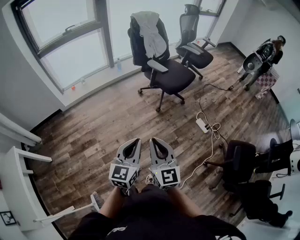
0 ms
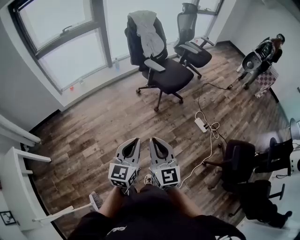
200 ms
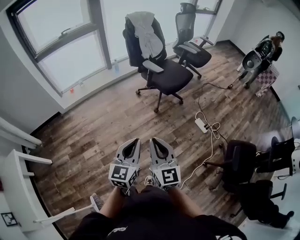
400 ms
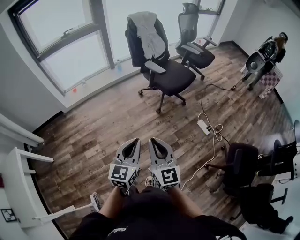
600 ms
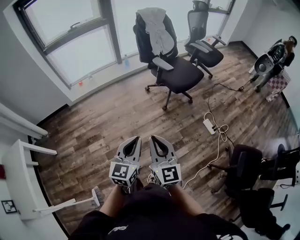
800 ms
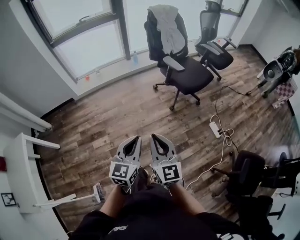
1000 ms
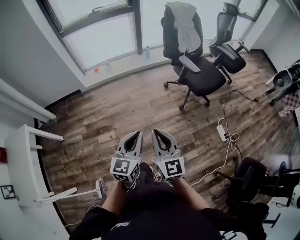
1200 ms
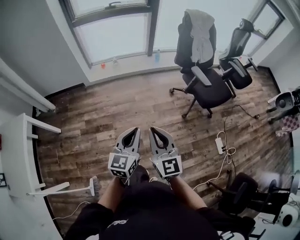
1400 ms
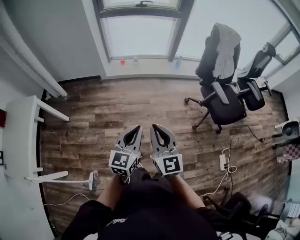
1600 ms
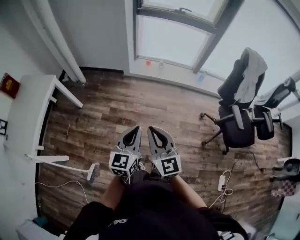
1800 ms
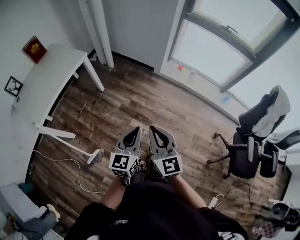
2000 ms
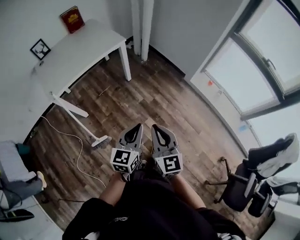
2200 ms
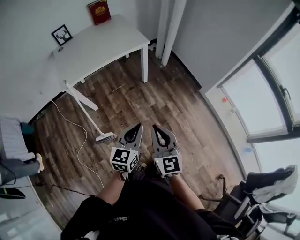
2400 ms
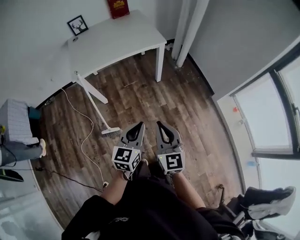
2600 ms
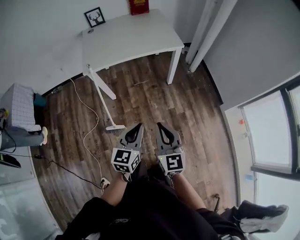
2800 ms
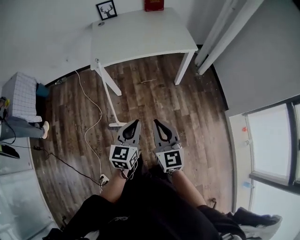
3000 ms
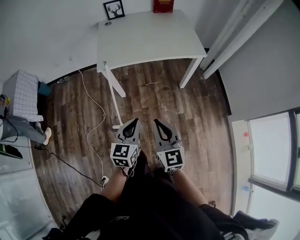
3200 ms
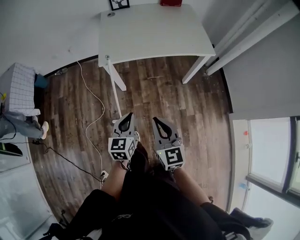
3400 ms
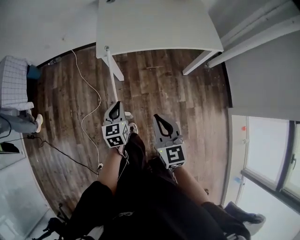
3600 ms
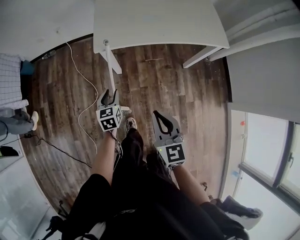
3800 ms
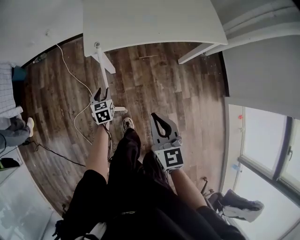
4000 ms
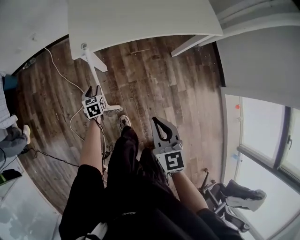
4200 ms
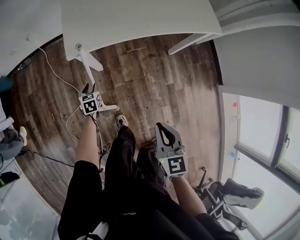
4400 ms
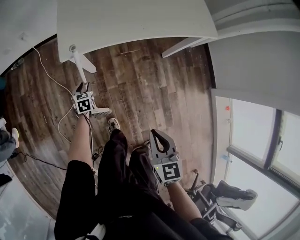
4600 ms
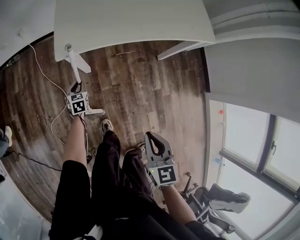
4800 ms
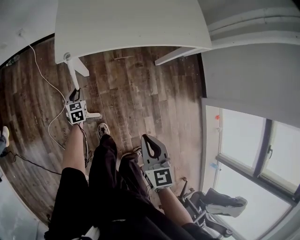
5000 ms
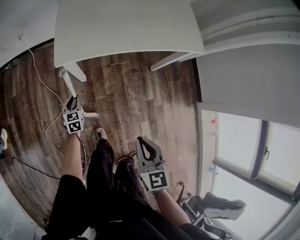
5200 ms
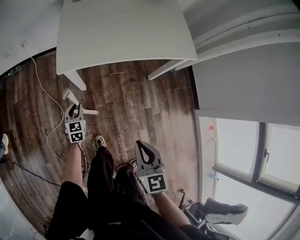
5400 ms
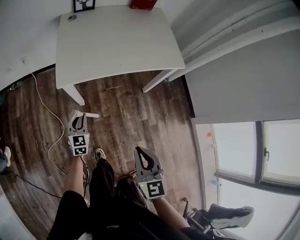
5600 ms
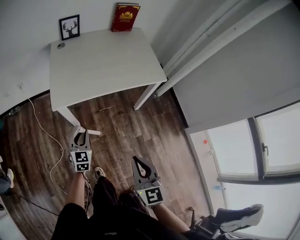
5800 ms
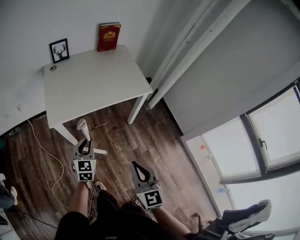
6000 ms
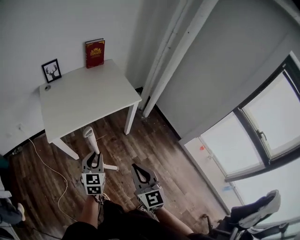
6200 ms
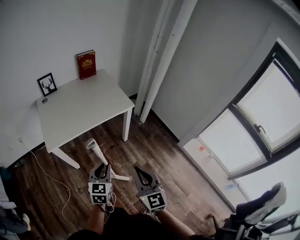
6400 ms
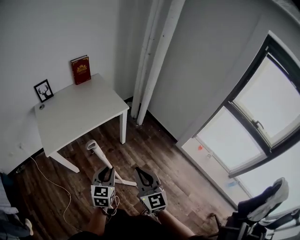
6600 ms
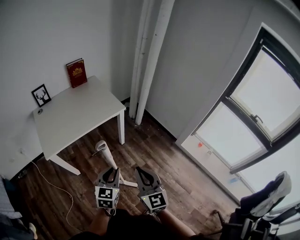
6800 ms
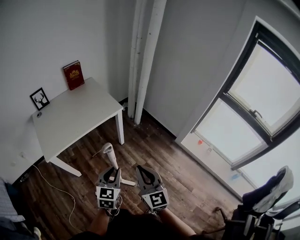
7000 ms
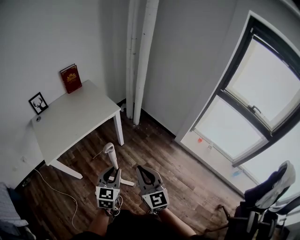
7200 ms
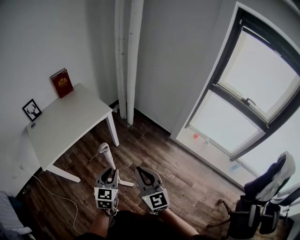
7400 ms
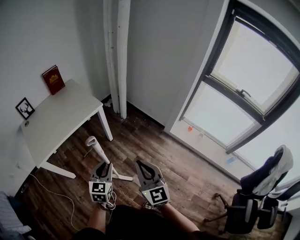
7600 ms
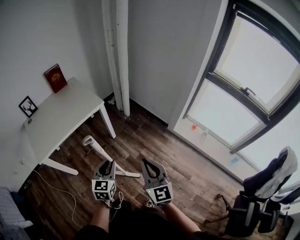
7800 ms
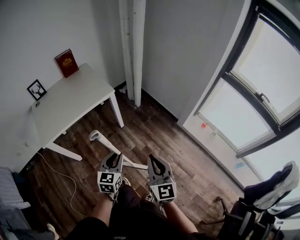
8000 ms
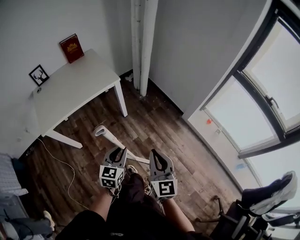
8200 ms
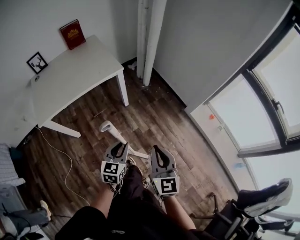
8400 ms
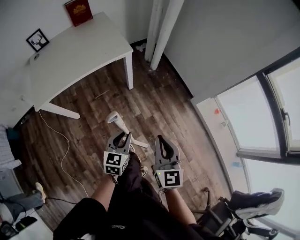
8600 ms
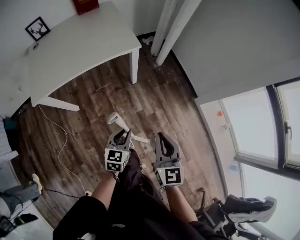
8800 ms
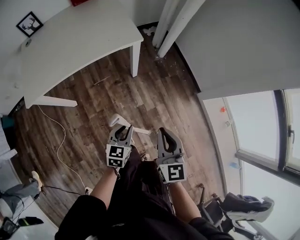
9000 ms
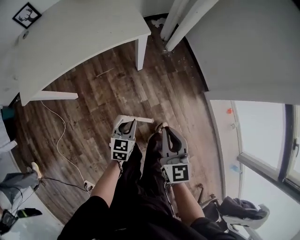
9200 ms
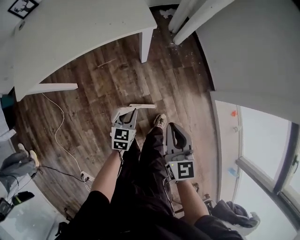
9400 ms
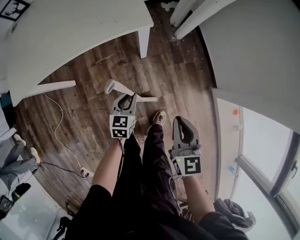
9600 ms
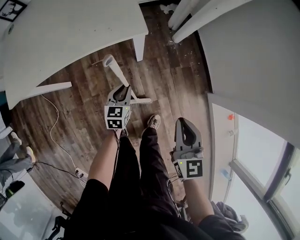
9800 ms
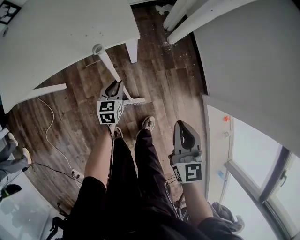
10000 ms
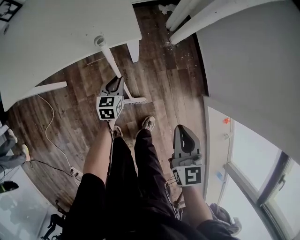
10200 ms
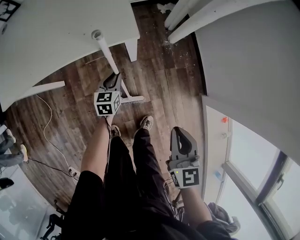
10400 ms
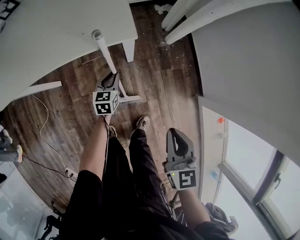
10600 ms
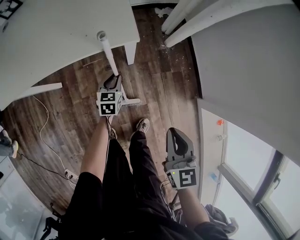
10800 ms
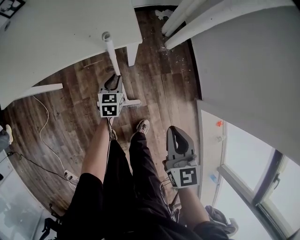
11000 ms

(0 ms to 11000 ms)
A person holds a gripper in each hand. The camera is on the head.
0 ms - 1600 ms: The left gripper ends up some 30 cm from where it was, and turns by some 30 degrees. Meanwhile the right gripper ends up some 30 cm from where it was, and rotates some 30 degrees.
1600 ms - 3200 ms: The pair of grippers is taken approximately 60 cm. The right gripper changes its angle by about 80 degrees, while the left gripper changes its angle by roughly 90 degrees.
3200 ms - 4800 ms: The left gripper travels downward, forward and to the left by approximately 50 cm, and changes its angle by approximately 30 degrees. Meanwhile the right gripper heads downward and forward, covering some 15 cm, and swivels approximately 30 degrees.
4800 ms - 6200 ms: The right gripper is displaced upward and to the right by about 25 cm, and changes its angle by some 30 degrees. Meanwhile the left gripper moves upward and to the right, roughly 50 cm, and rotates roughly 40 degrees.
6200 ms - 7800 ms: The two grippers go some 30 cm to the right.
7800 ms - 9400 ms: The right gripper heads forward and downward, covering about 40 cm, and changes its angle by about 30 degrees, while the left gripper is displaced downward and forward by roughly 40 cm, and changes its angle by some 30 degrees.
9400 ms - 11000 ms: The right gripper is displaced forward and to the right by some 10 cm. The left gripper goes roughly 20 cm forward.

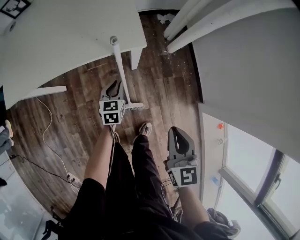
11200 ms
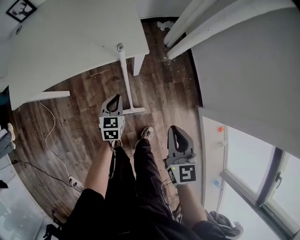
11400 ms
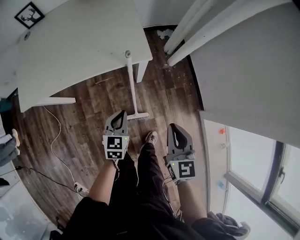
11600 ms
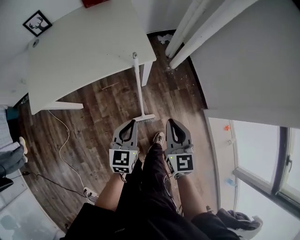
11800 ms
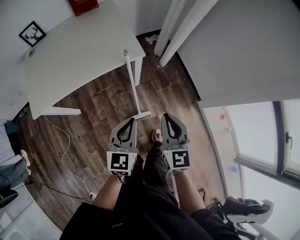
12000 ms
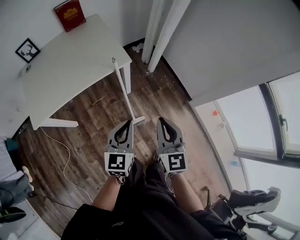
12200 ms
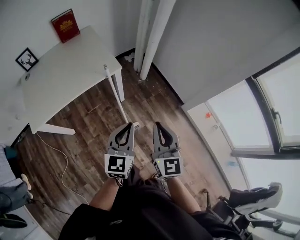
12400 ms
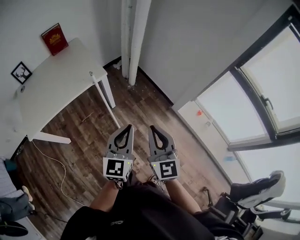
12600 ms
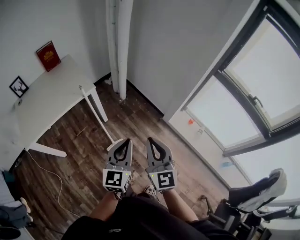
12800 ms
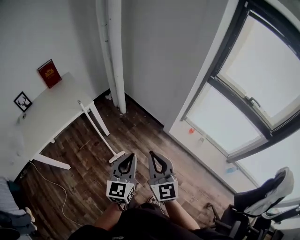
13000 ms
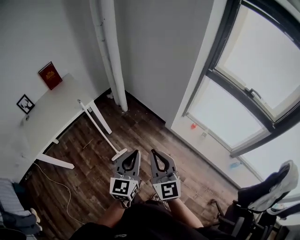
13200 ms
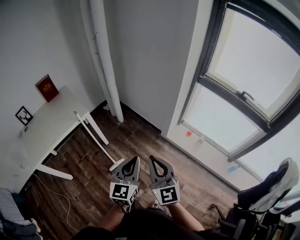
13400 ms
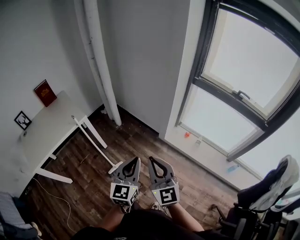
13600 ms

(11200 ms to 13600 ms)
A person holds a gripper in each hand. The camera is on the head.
11200 ms - 12400 ms: The right gripper moves upward and backward, roughly 30 cm, and turns by some 30 degrees, while the left gripper goes about 50 cm upward and backward, and turns by roughly 40 degrees.
12400 ms - 13600 ms: The right gripper moves to the right and backward, about 30 cm. Meanwhile the left gripper heads to the right, covering some 30 cm.

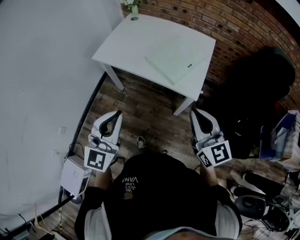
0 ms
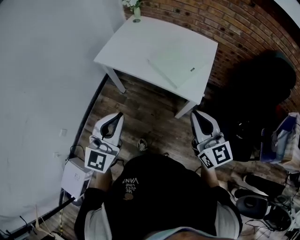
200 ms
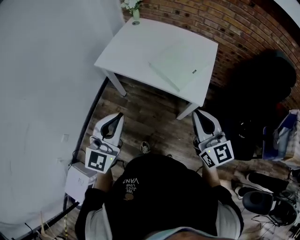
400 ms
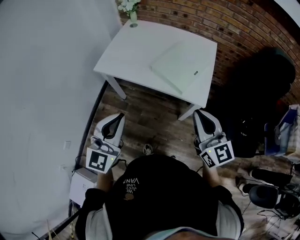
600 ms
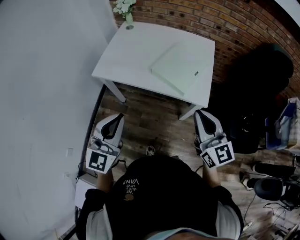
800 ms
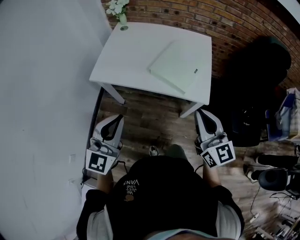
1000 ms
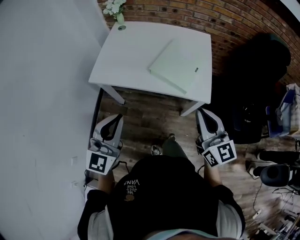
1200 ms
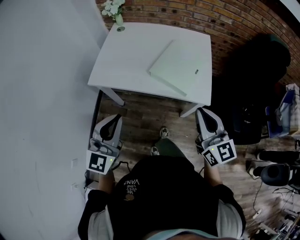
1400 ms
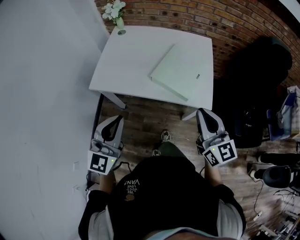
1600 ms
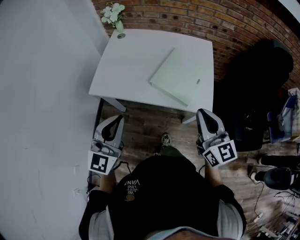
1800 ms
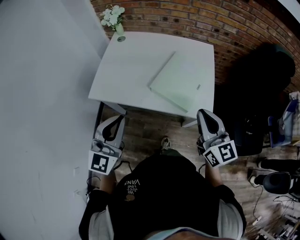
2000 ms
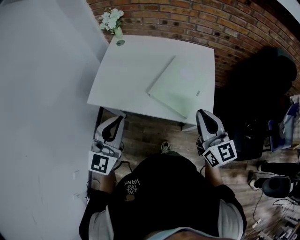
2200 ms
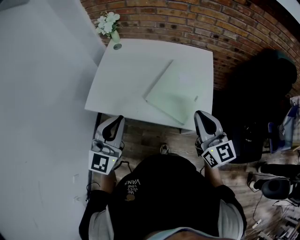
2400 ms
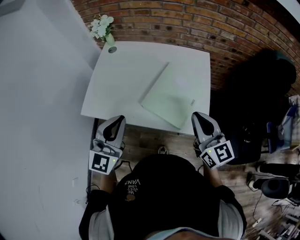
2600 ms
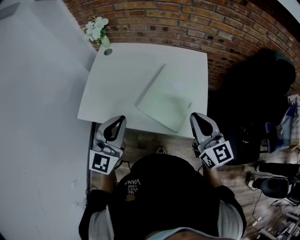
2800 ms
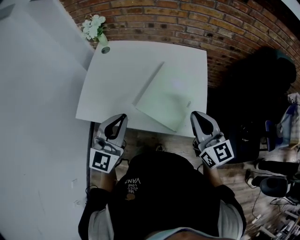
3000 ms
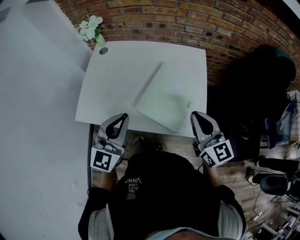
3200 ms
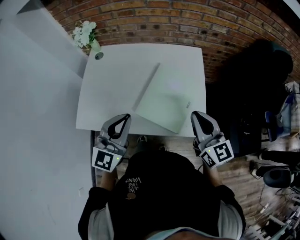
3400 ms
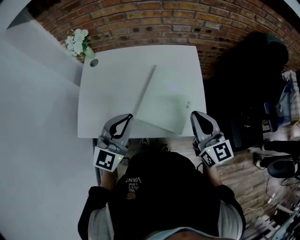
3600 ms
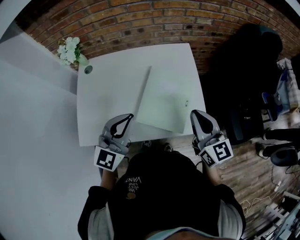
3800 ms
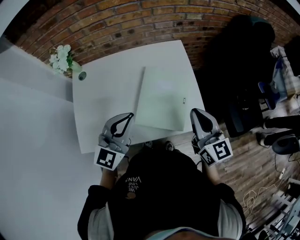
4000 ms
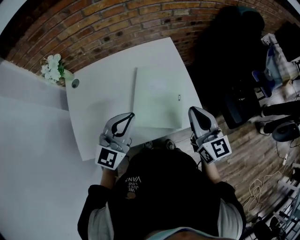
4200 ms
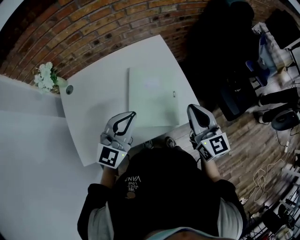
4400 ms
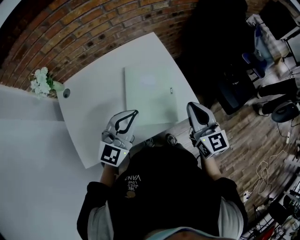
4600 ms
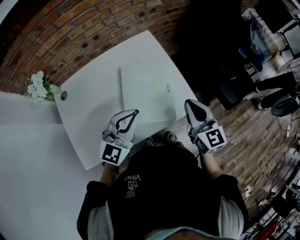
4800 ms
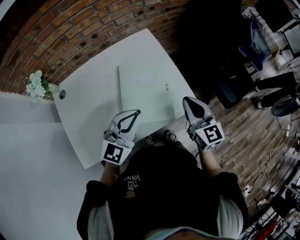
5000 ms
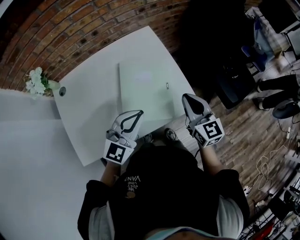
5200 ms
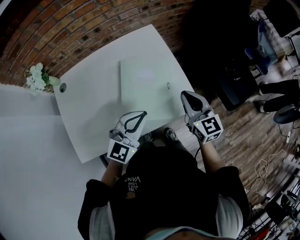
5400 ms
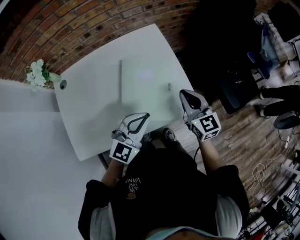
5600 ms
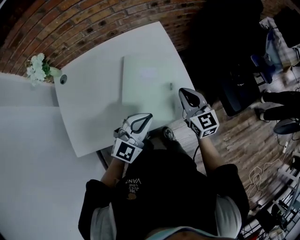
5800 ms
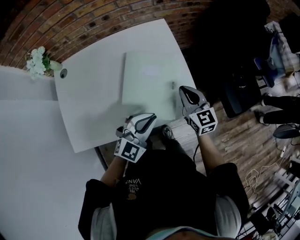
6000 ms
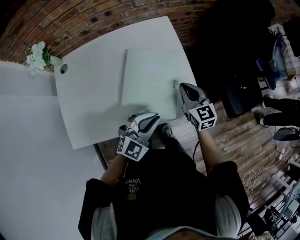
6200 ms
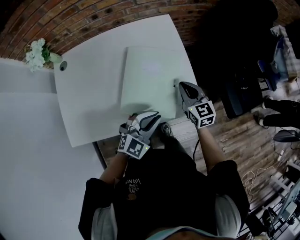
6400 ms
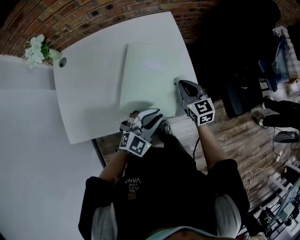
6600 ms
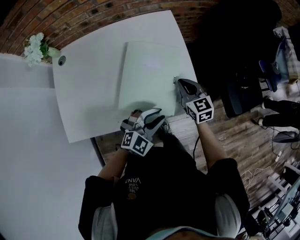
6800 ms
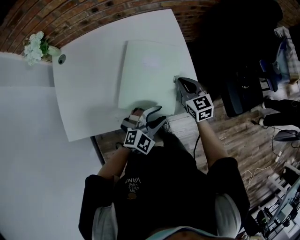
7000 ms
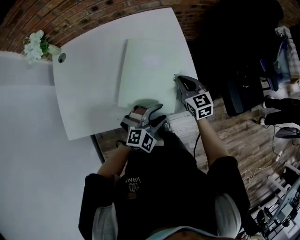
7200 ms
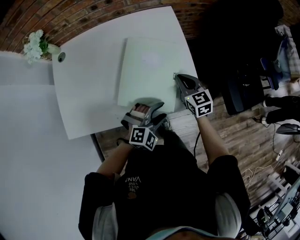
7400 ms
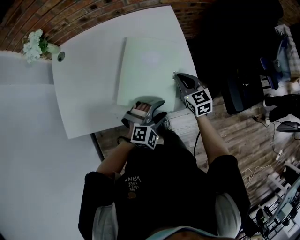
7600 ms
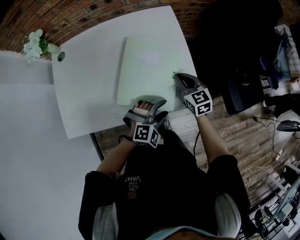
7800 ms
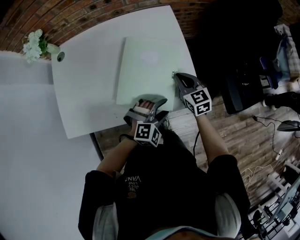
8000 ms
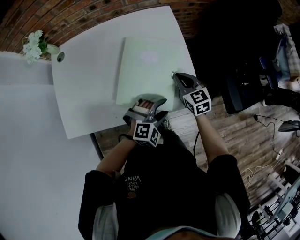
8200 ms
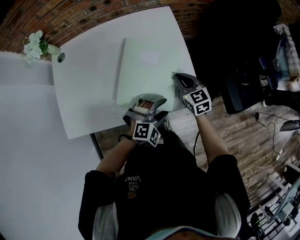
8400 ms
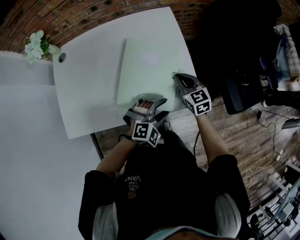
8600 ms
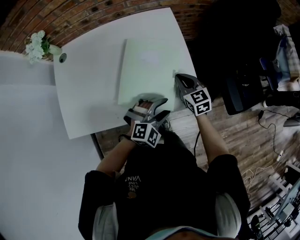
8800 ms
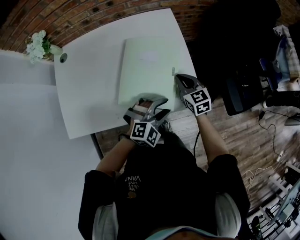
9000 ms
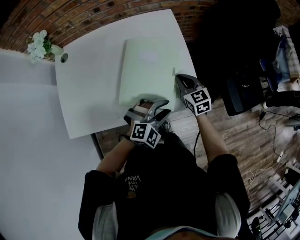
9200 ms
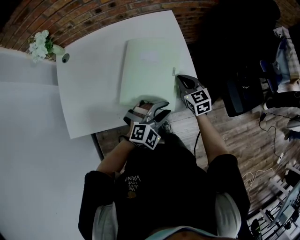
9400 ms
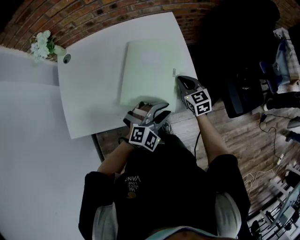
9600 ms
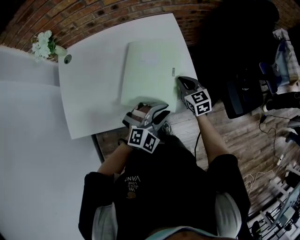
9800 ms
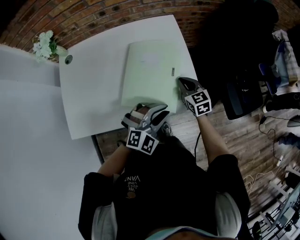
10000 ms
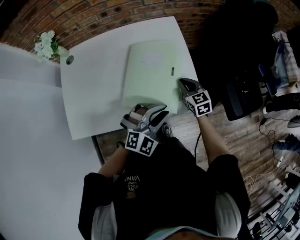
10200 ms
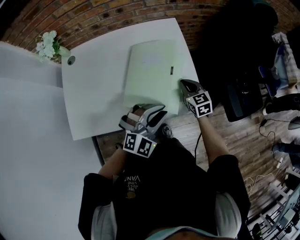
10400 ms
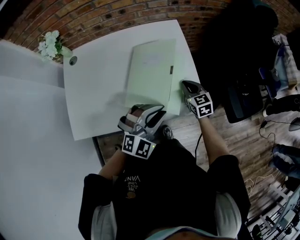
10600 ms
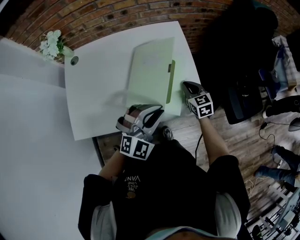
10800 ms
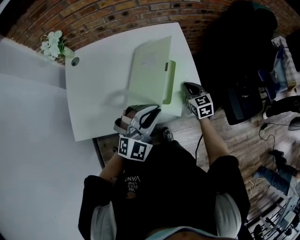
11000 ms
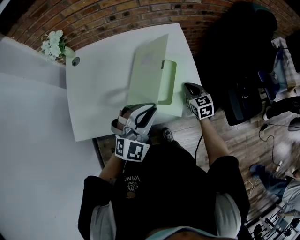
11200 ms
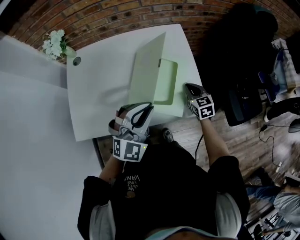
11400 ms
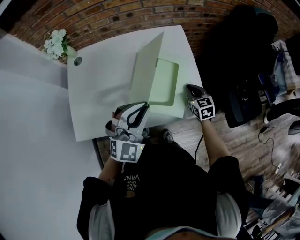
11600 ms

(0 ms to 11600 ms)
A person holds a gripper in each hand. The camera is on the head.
0 ms - 1400 ms: The left gripper travels forward and to the left by about 15 cm; the right gripper travels to the left and forward by roughly 10 cm.
1400 ms - 2800 ms: Both grippers move forward, approximately 20 cm.
2800 ms - 4400 ms: The left gripper shifts by some 15 cm, and swivels roughly 40 degrees. The right gripper turns by approximately 30 degrees.
4400 ms - 5800 ms: The left gripper travels to the right and downward by approximately 15 cm, while the right gripper is displaced downward and forward by some 10 cm.
5800 ms - 7200 ms: The left gripper is displaced downward and to the right by about 15 cm, changes its angle by roughly 30 degrees, and opens up; the right gripper travels downward by approximately 10 cm.
7200 ms - 8800 ms: The grippers stay close to where they were, moving slightly.
8800 ms - 10200 ms: The left gripper travels upward by about 10 cm, and closes its fingers.
10200 ms - 11600 ms: The left gripper goes roughly 15 cm to the left and upward, and changes its angle by roughly 20 degrees.
